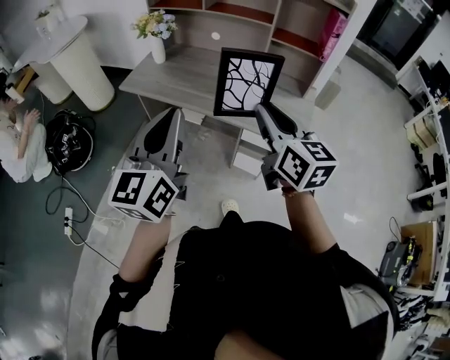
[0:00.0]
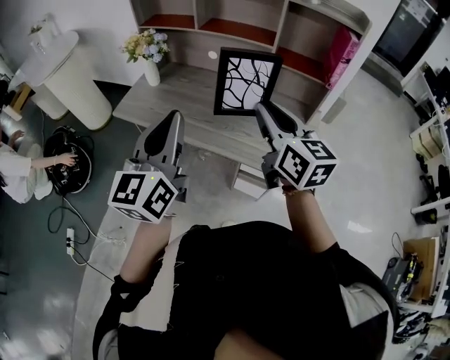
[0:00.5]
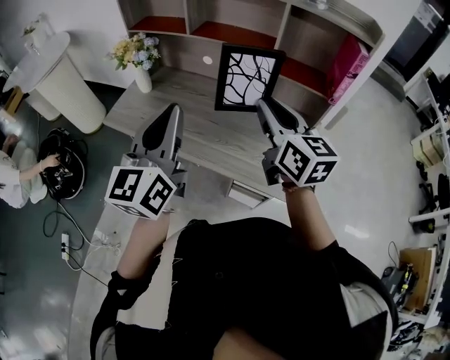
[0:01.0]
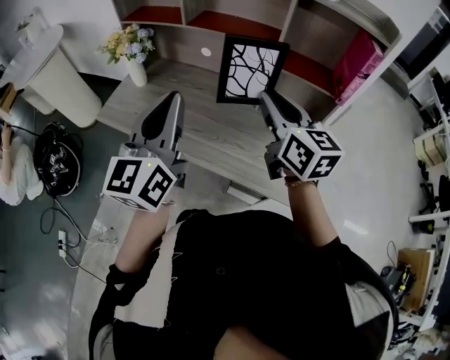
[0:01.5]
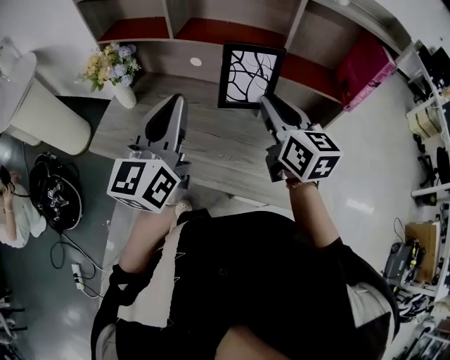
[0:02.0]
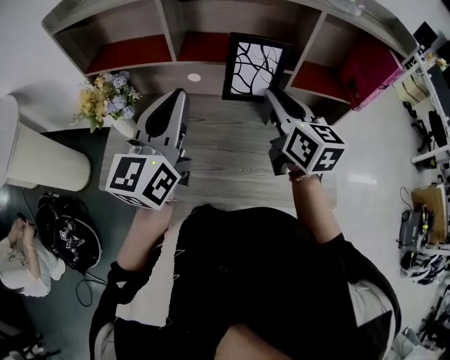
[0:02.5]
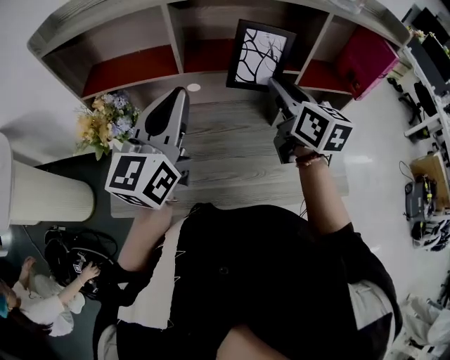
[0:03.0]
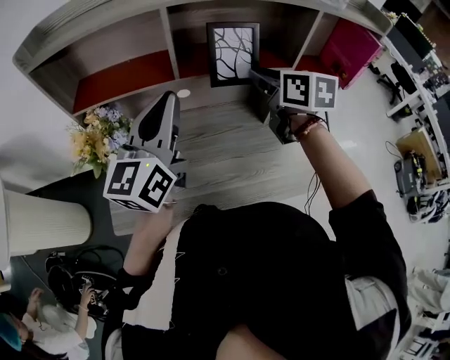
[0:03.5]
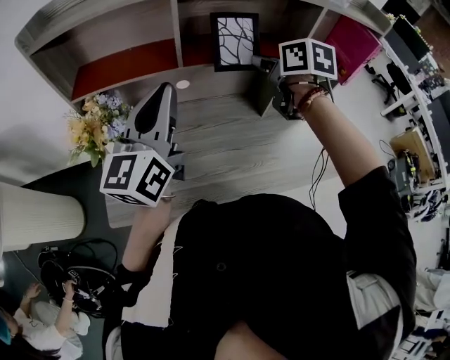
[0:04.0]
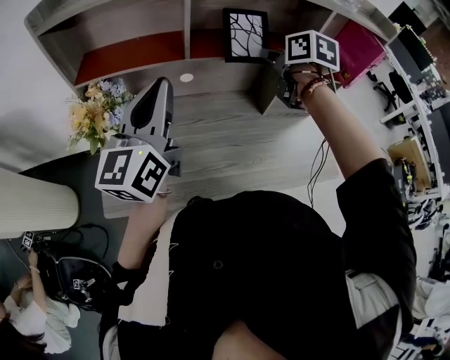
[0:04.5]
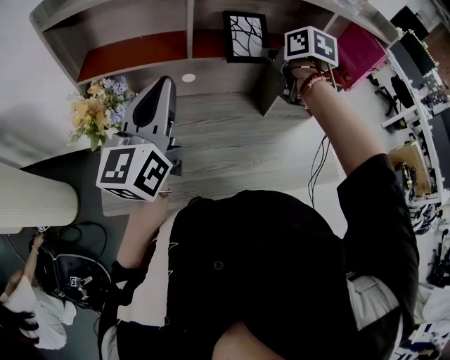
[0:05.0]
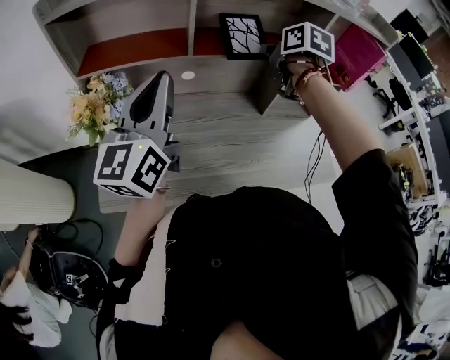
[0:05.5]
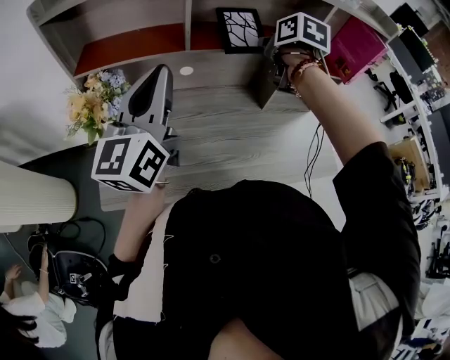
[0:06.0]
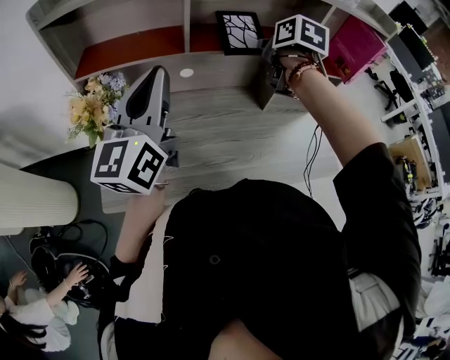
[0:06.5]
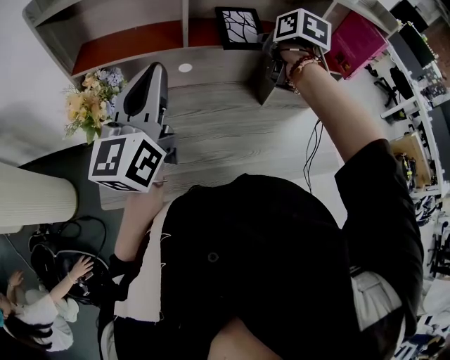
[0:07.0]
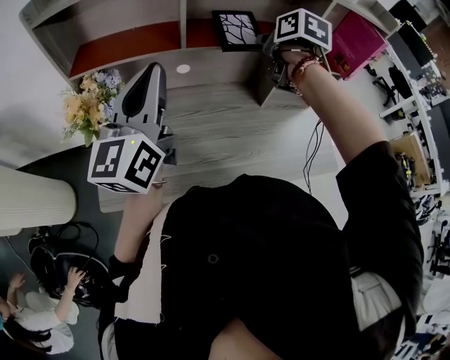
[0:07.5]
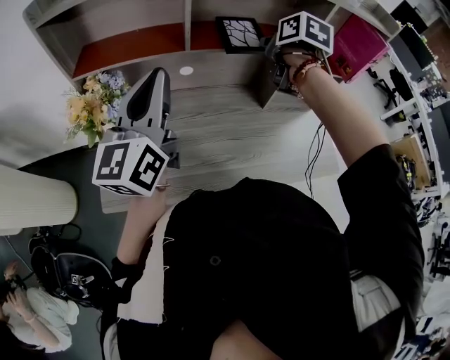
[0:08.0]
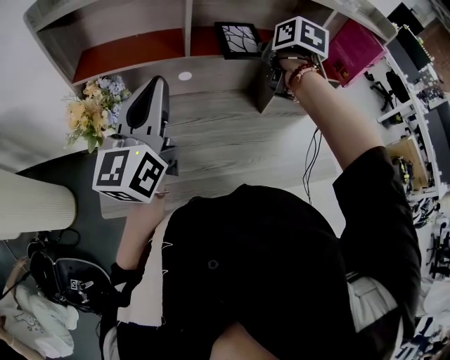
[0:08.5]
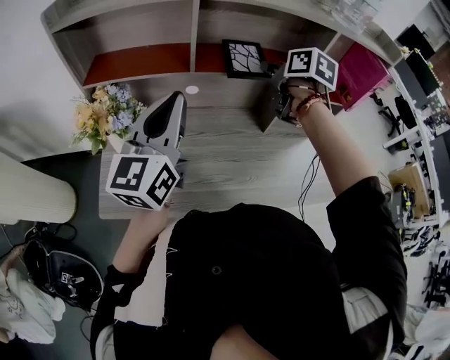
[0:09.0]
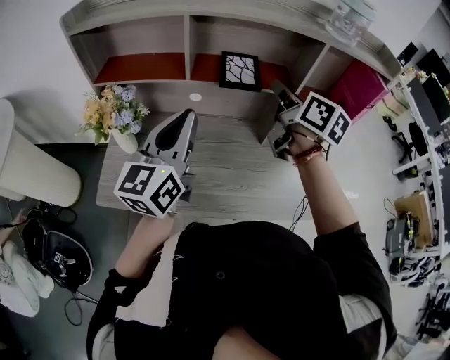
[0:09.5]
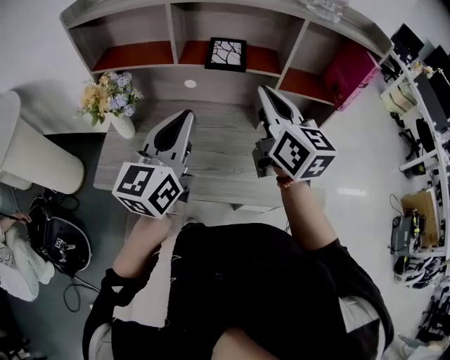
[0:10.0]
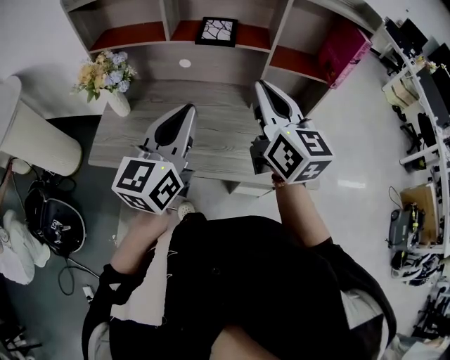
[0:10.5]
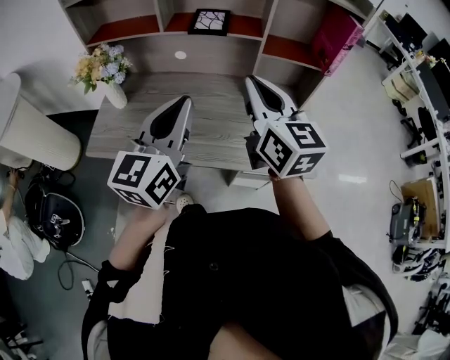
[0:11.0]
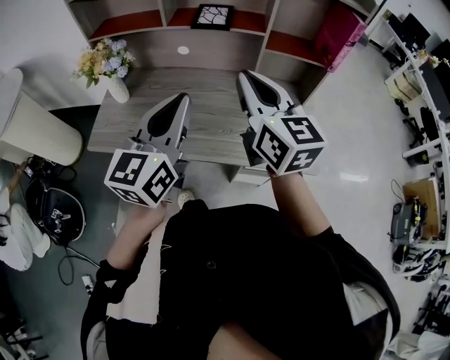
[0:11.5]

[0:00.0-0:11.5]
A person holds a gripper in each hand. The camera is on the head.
0:00.0 to 0:02.0: Both grippers travel together forward, roughly 35 cm.
0:02.0 to 0:04.0: The right gripper goes approximately 15 cm forward and to the left, and rotates some 30 degrees; the left gripper moves to the left and forward, some 20 cm, and turns by roughly 20 degrees.
0:04.0 to 0:06.0: The grippers move only a little.
0:06.0 to 0:07.5: Neither gripper changes place.
0:07.5 to 0:09.5: The right gripper travels upward and backward by roughly 10 cm, and angles its fingers upward, by about 30 degrees. The left gripper heads to the right, covering approximately 10 cm.
0:09.5 to 0:11.5: The left gripper goes roughly 20 cm backward and to the right. Meanwhile the right gripper moves backward, about 20 cm, and changes its angle by approximately 30 degrees.

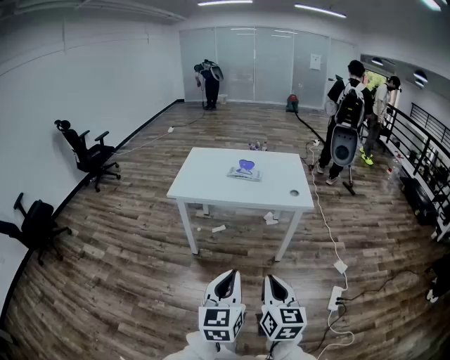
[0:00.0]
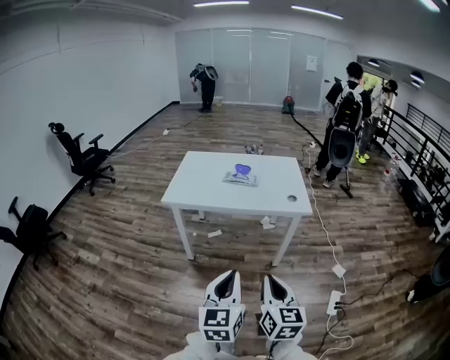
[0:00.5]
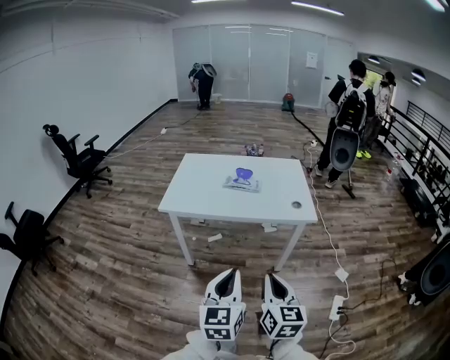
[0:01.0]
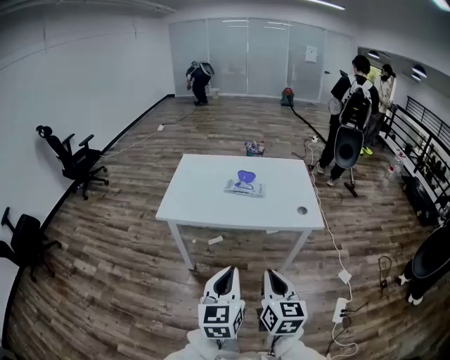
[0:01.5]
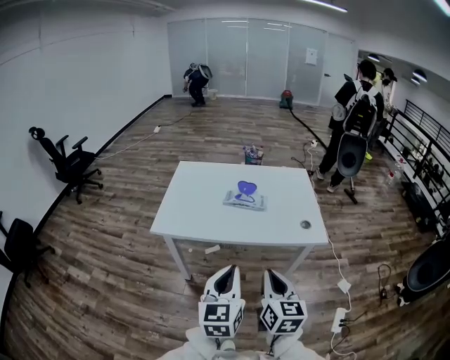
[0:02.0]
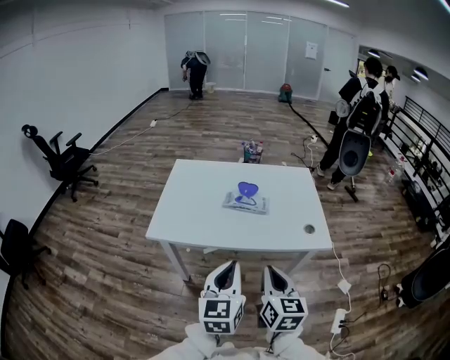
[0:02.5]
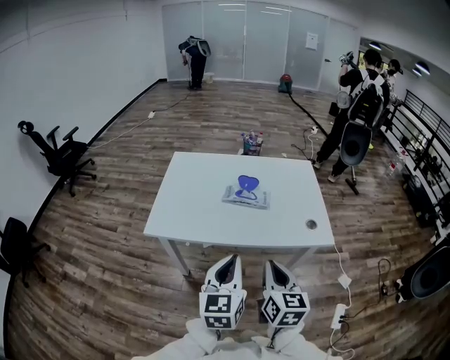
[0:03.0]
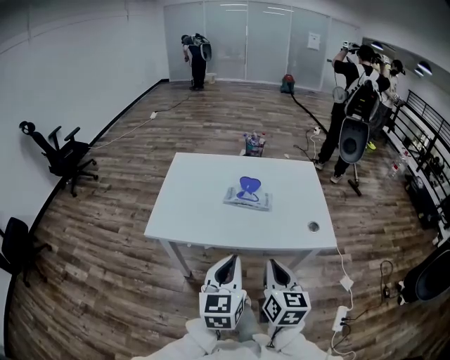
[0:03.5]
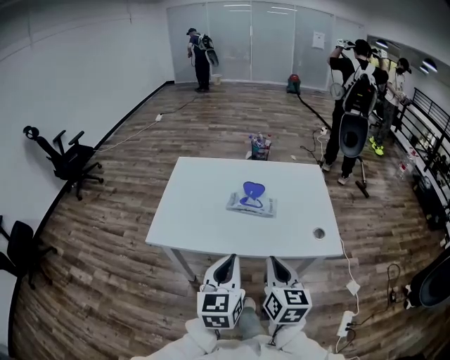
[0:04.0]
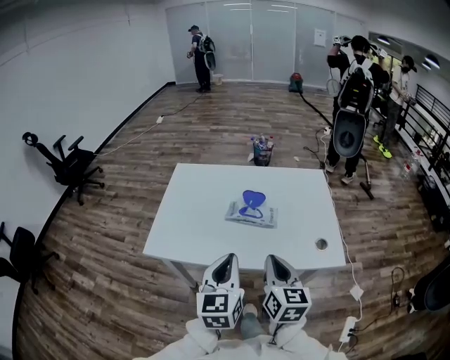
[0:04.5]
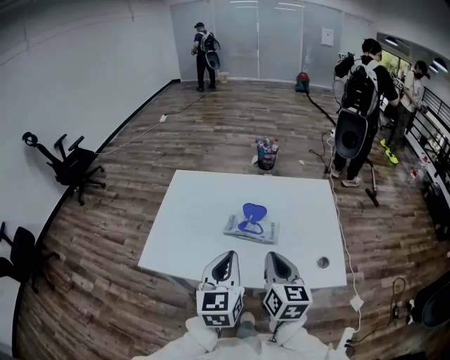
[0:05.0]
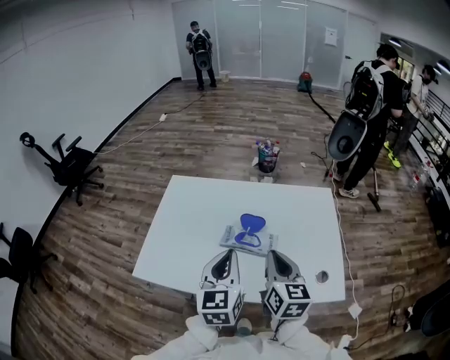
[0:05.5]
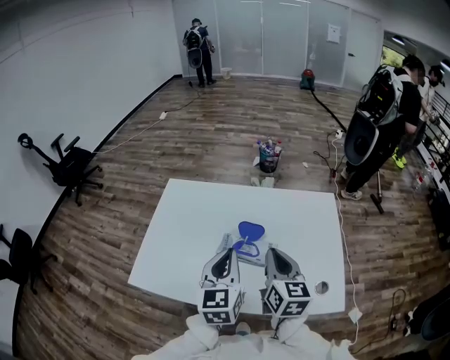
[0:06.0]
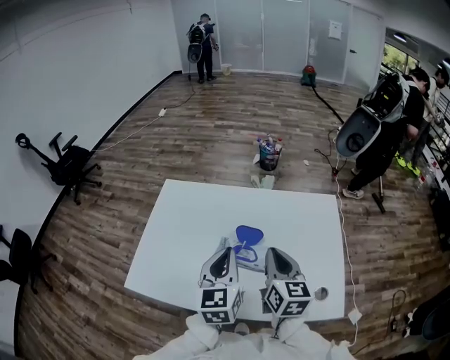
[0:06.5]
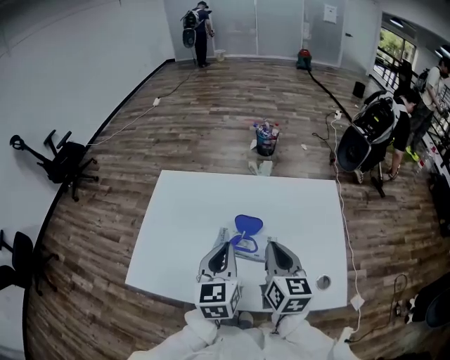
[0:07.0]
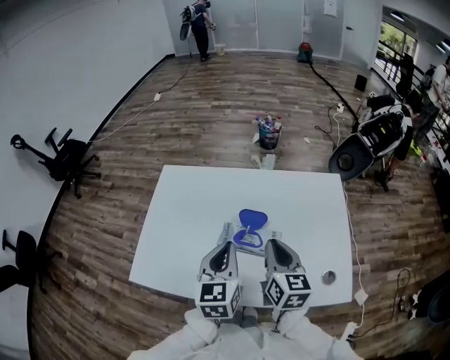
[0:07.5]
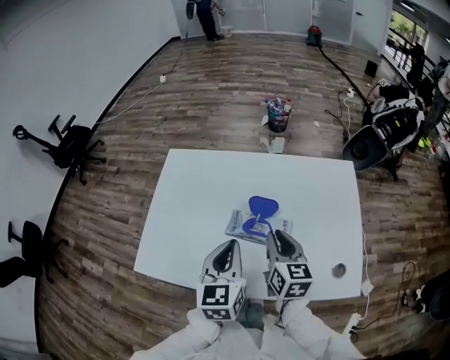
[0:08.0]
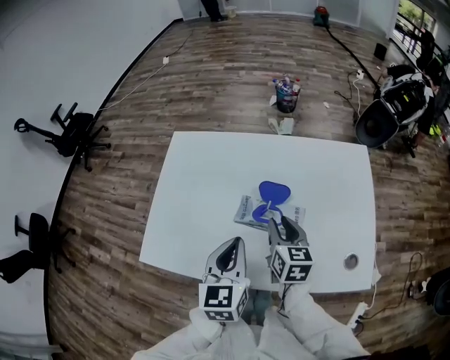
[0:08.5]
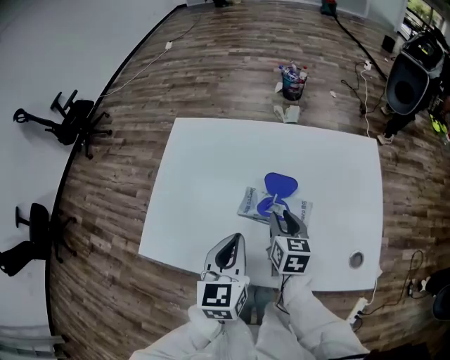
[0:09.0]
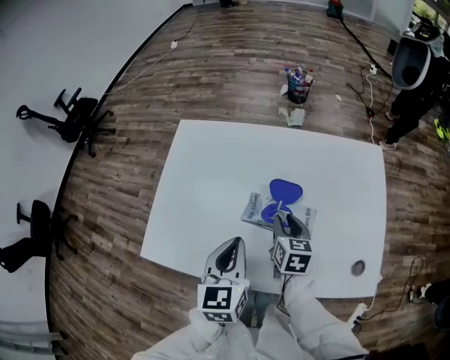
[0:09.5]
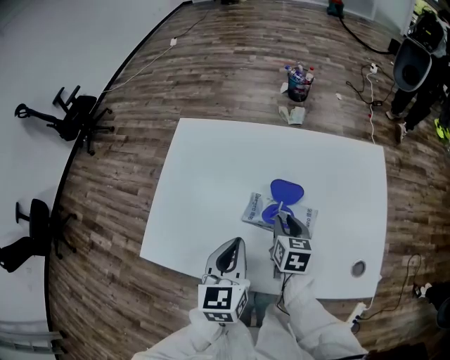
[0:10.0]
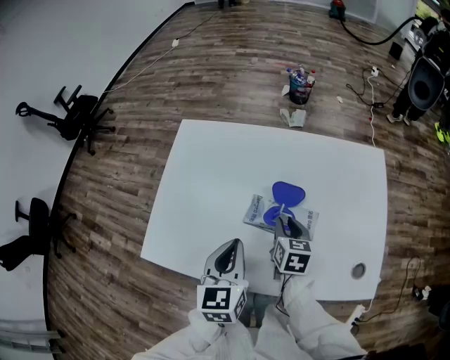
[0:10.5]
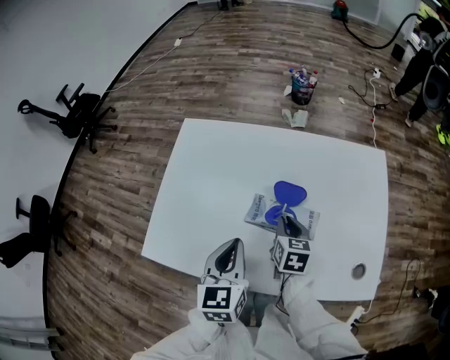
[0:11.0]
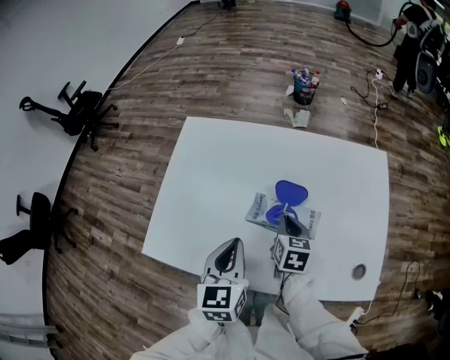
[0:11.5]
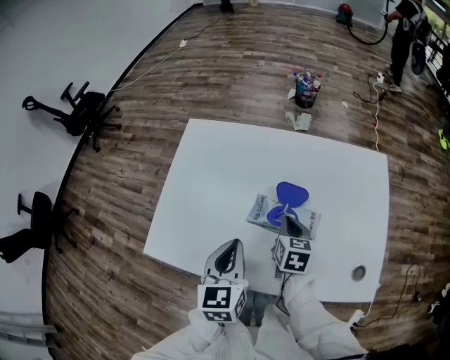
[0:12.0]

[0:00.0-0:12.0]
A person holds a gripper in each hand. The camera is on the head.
0:00.0 to 0:02.0: The grippers both shift forward by roughly 30 cm.
0:02.0 to 0:04.0: The grippers both shift forward by approximately 15 cm.
0:04.0 to 0:06.0: The two grippers go about 25 cm forward.
0:06.0 to 0:08.0: The right gripper heads downward, covering about 10 cm. The left gripper is displaced downward by about 5 cm.
0:08.0 to 0:10.0: The left gripper shifts by about 5 cm. The right gripper is displaced downward by roughly 10 cm.
0:10.0 to 0:12.0: The right gripper closes its fingers.

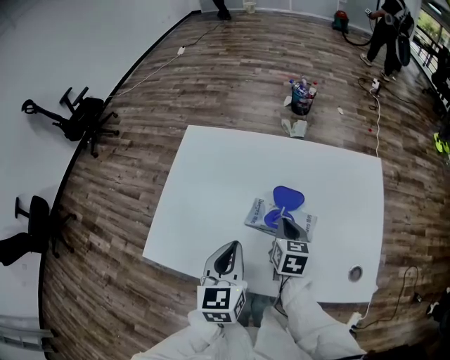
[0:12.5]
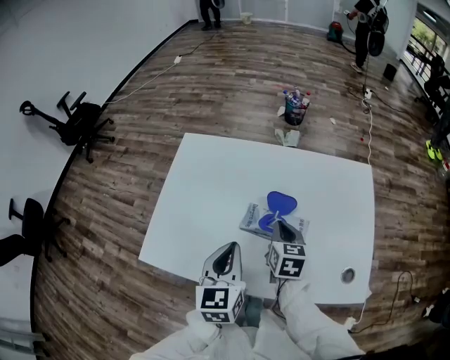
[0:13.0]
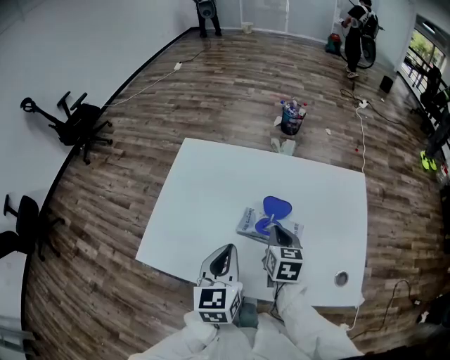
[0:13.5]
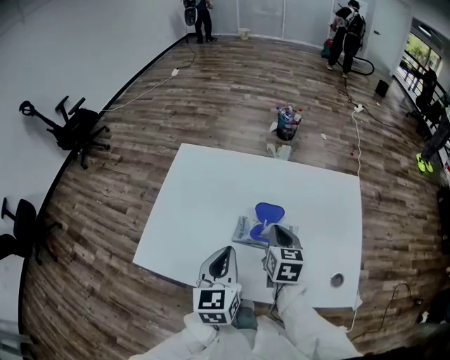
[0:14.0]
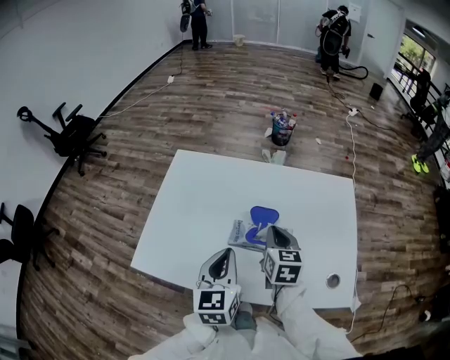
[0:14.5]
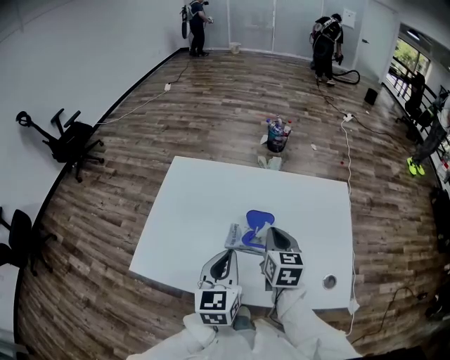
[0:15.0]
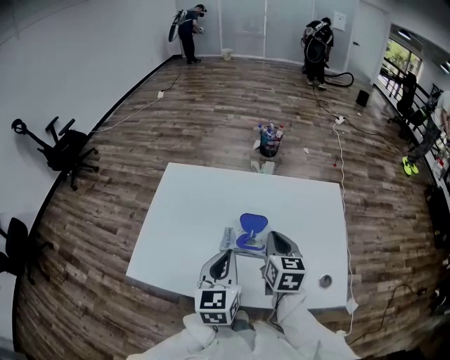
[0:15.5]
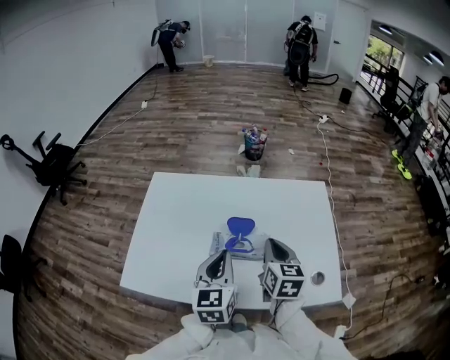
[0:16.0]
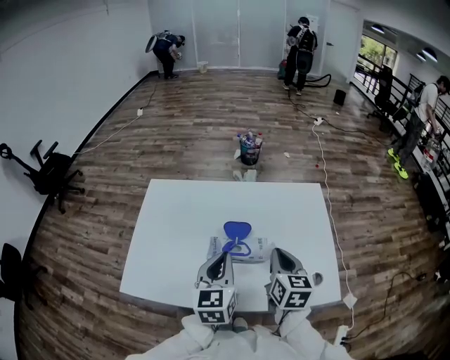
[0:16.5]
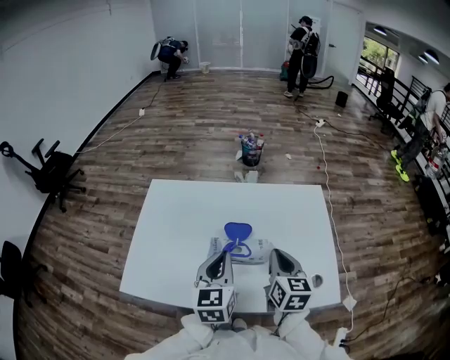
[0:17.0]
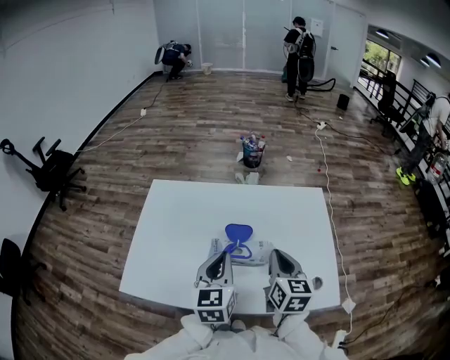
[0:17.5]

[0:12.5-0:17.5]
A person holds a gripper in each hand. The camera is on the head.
0:12.5 to 0:15.0: The left gripper shifts by approximately 5 cm, while the right gripper goes some 10 cm upward.
0:15.0 to 0:17.5: The right gripper shifts approximately 10 cm to the right and backward.
